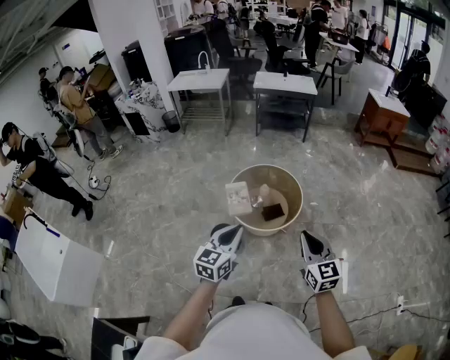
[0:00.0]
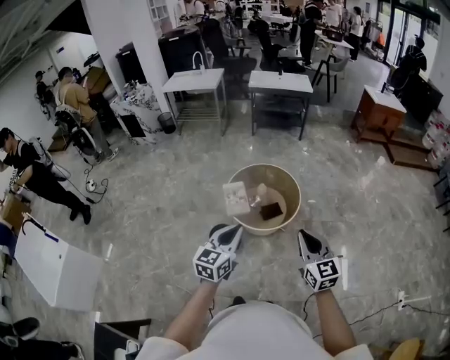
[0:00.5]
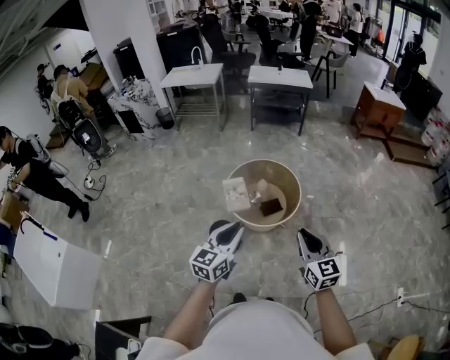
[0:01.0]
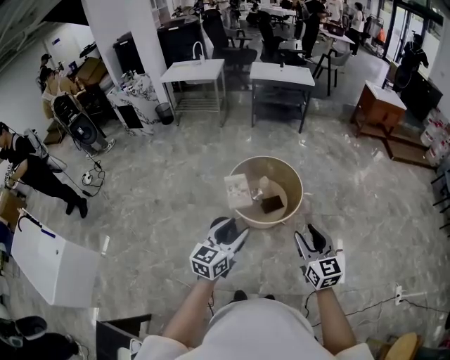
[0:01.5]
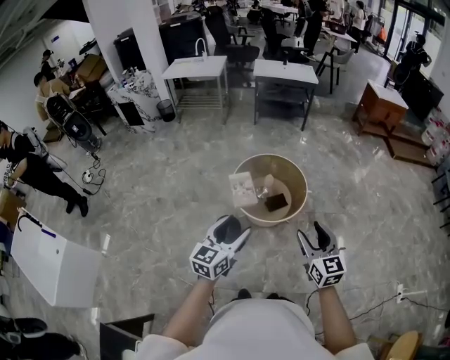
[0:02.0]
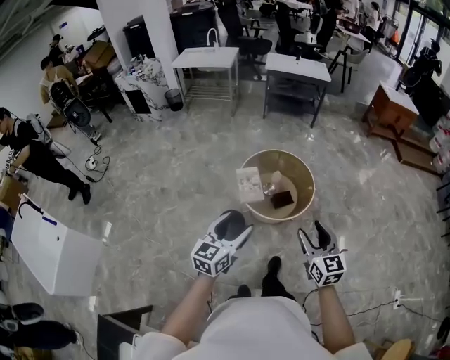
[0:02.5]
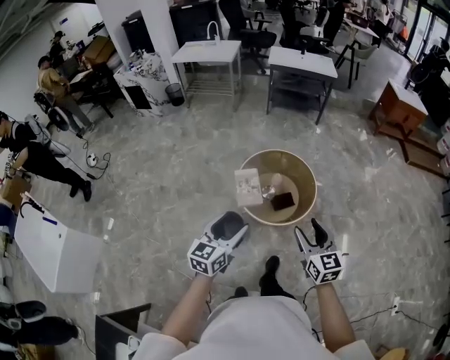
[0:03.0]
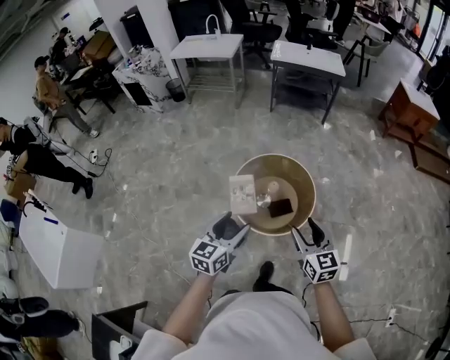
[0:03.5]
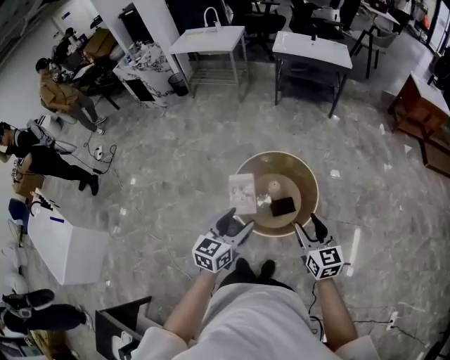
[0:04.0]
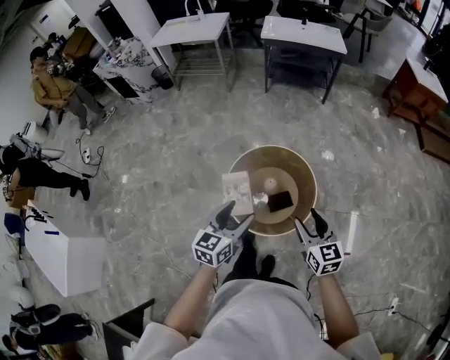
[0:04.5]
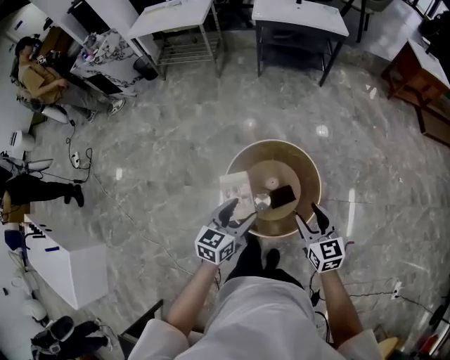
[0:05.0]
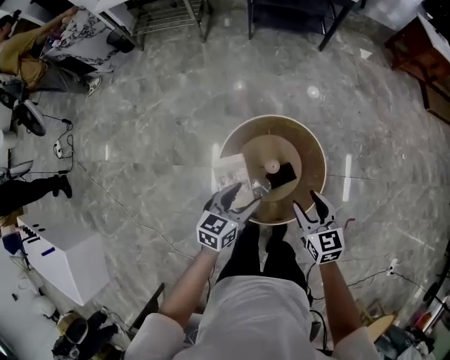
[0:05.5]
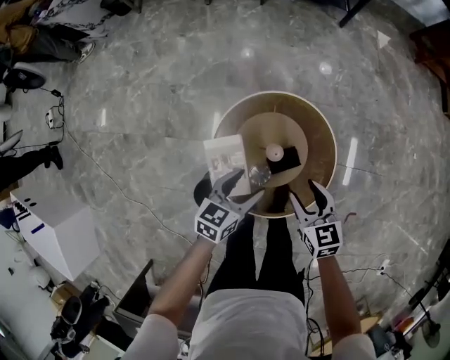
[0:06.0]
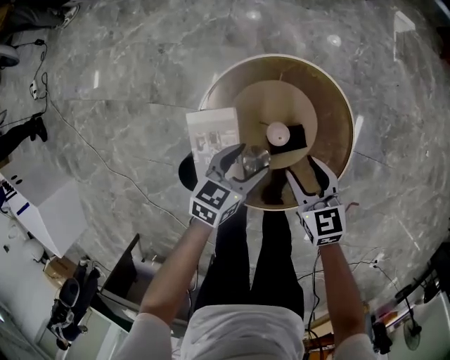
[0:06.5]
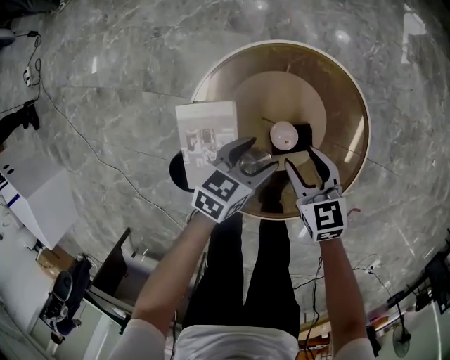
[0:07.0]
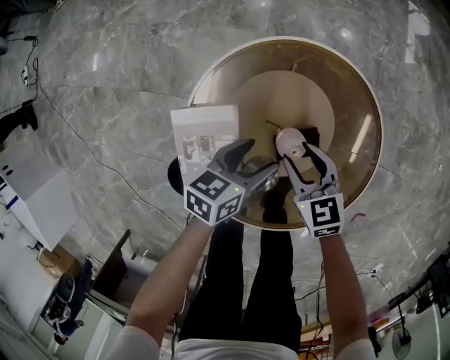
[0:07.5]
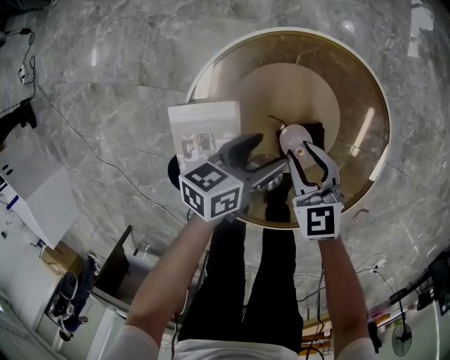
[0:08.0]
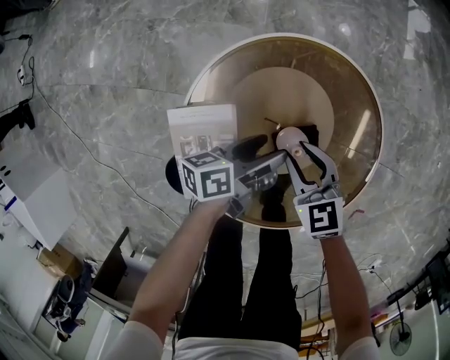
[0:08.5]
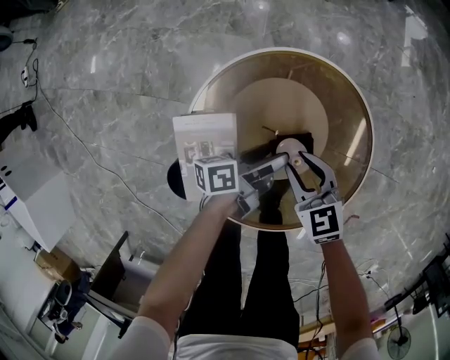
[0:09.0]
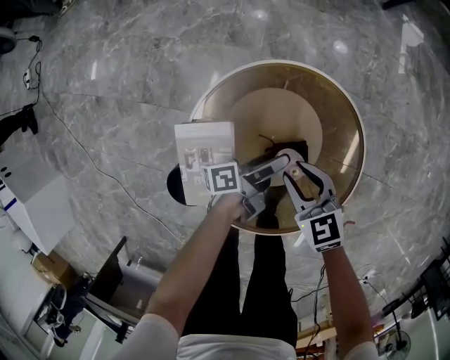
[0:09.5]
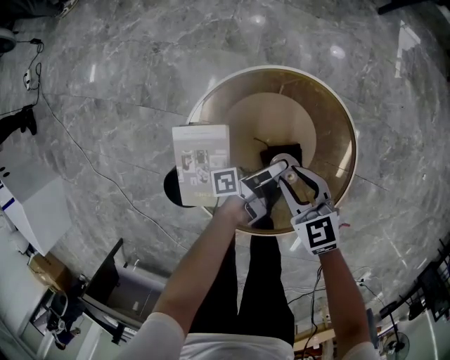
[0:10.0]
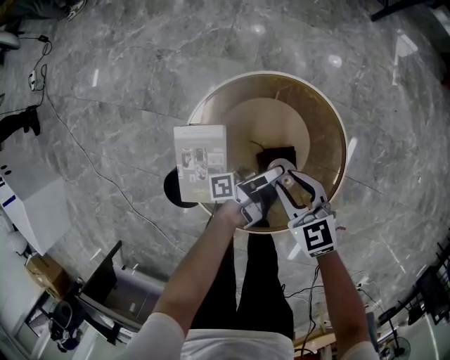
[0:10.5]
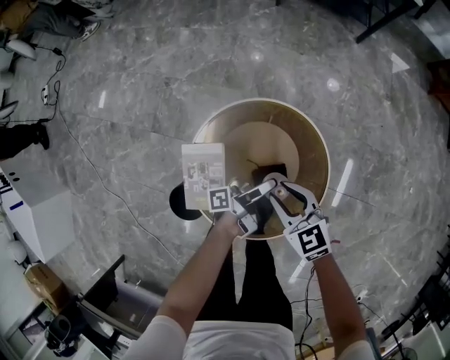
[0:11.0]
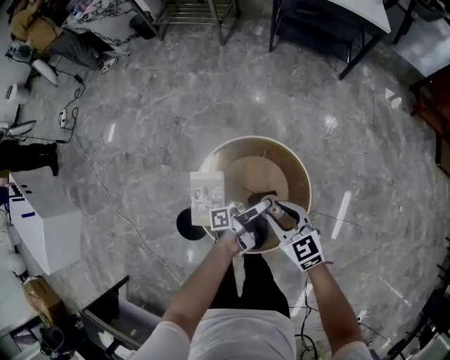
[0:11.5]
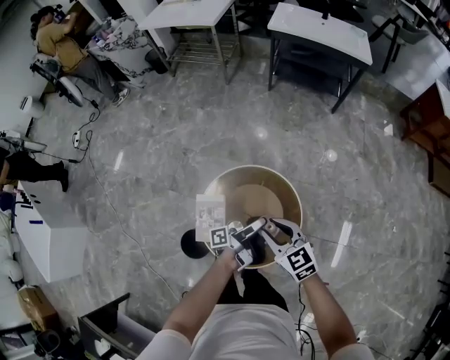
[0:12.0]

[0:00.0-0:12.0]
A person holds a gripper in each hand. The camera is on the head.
0:00.0 to 0:02.0: The right gripper shifts by roughly 10 cm, and opens up.
0:02.0 to 0:04.0: The right gripper shifts by about 35 cm.
0:04.0 to 0:06.0: The right gripper moves about 40 cm, and changes its angle by some 20 degrees.
0:06.0 to 0:08.0: The right gripper moves downward, roughly 30 cm, and closes its fingers.
0:08.0 to 0:10.0: The right gripper shifts approximately 10 cm upward.
0:10.0 to 0:12.0: The right gripper heads upward, covering some 40 cm.

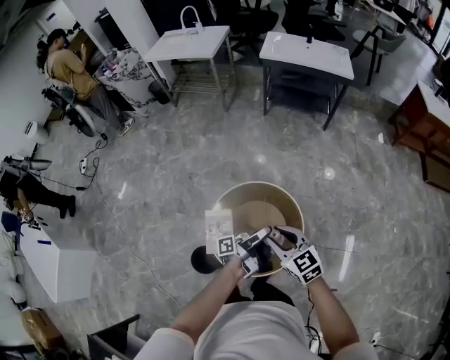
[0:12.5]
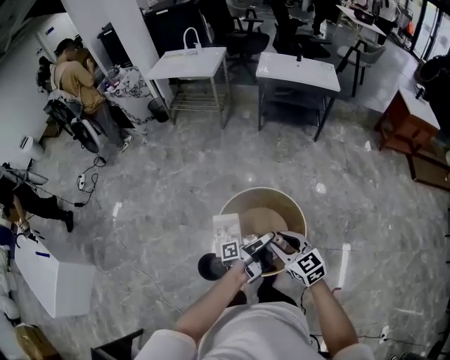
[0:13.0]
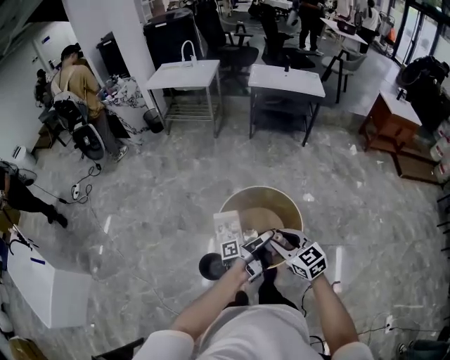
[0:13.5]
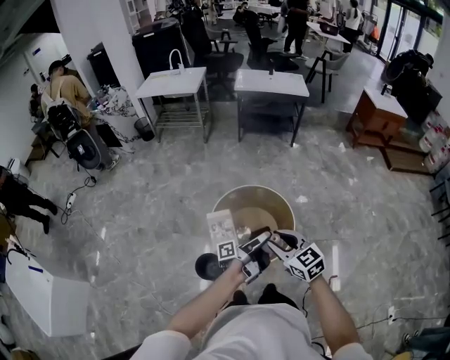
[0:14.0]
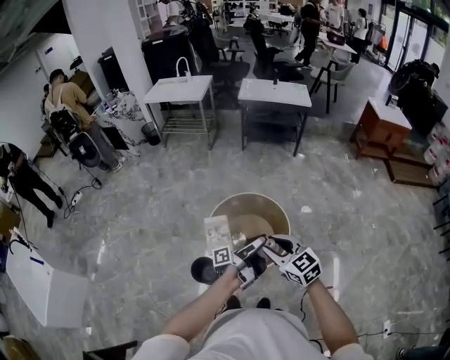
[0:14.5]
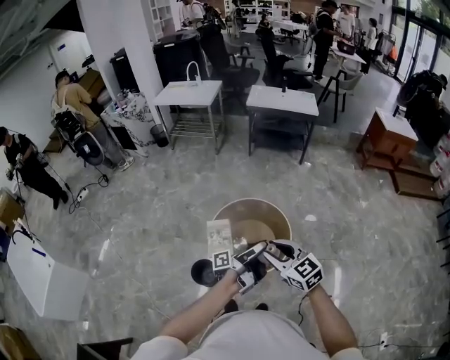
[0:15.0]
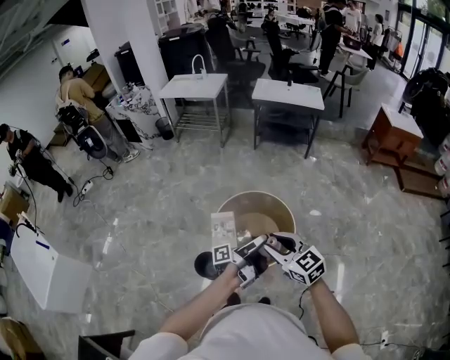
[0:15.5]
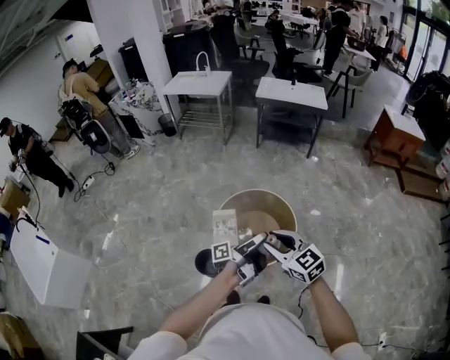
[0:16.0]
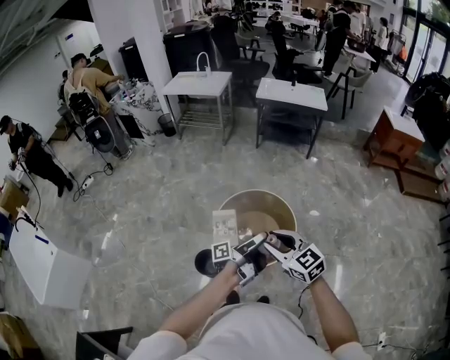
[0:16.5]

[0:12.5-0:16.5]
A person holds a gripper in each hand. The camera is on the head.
0:12.5 to 0:14.5: The right gripper ends up roughly 30 cm from where it was.

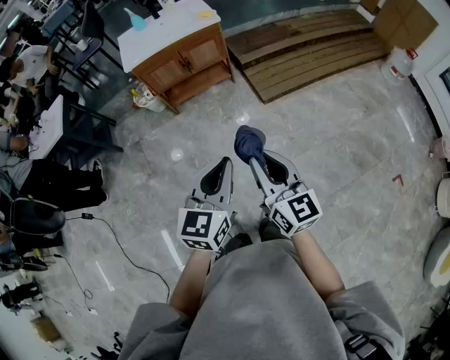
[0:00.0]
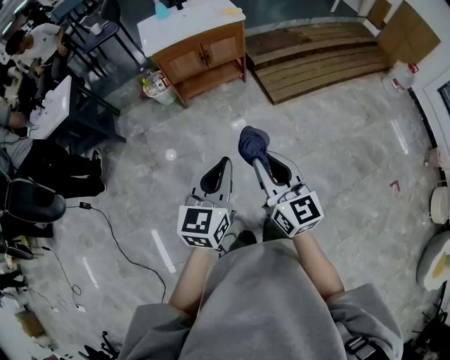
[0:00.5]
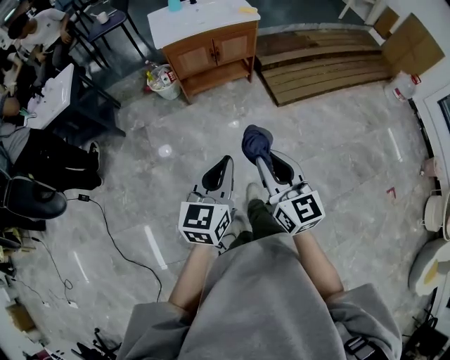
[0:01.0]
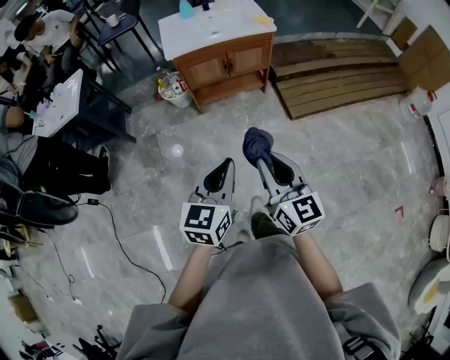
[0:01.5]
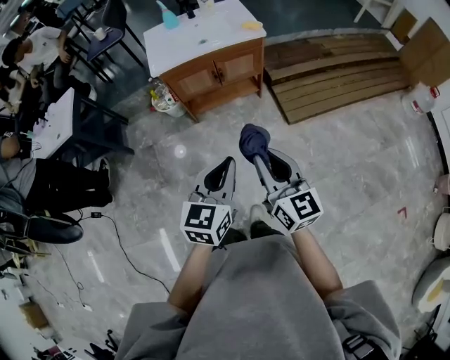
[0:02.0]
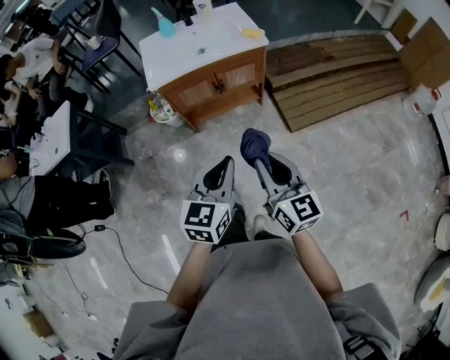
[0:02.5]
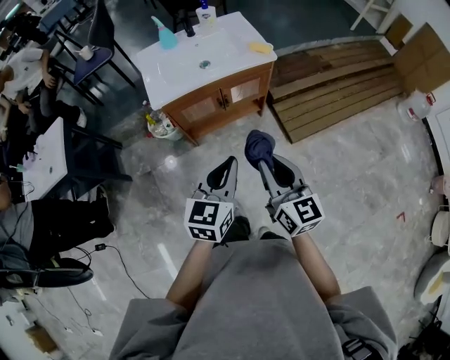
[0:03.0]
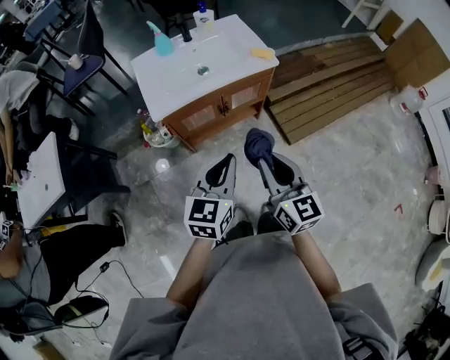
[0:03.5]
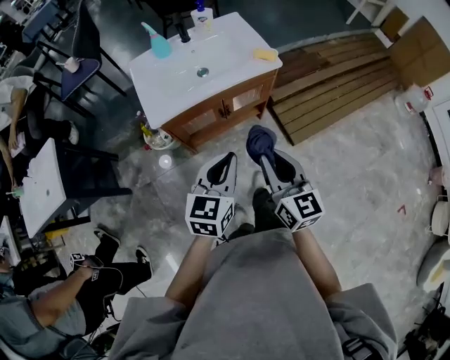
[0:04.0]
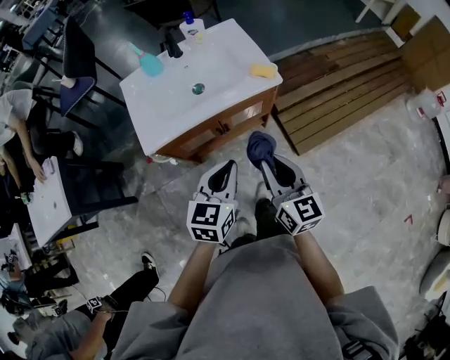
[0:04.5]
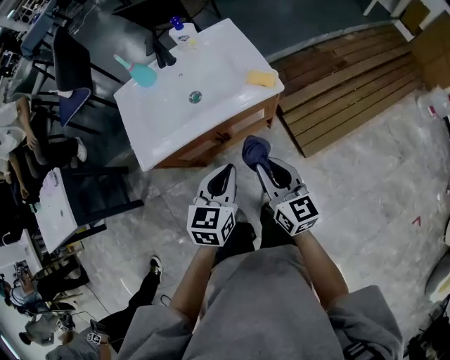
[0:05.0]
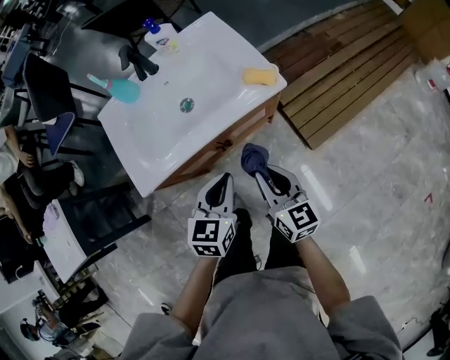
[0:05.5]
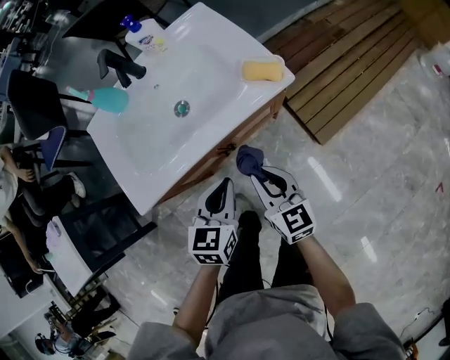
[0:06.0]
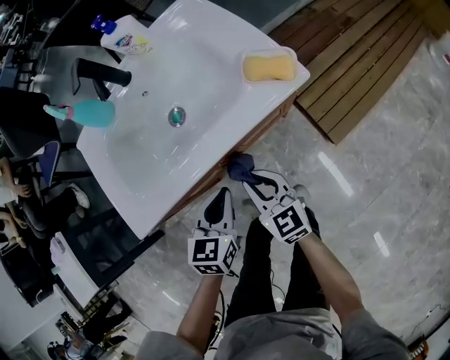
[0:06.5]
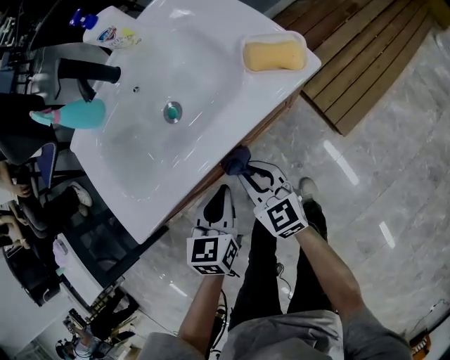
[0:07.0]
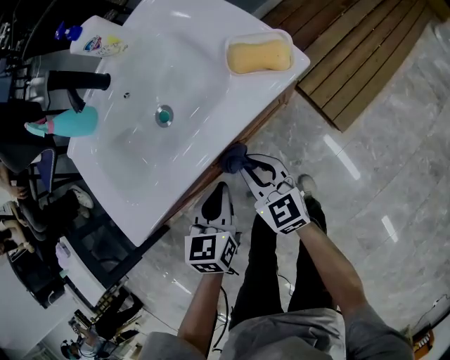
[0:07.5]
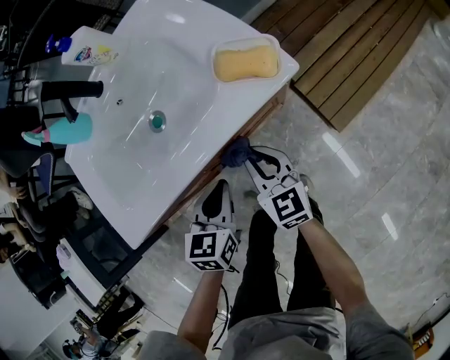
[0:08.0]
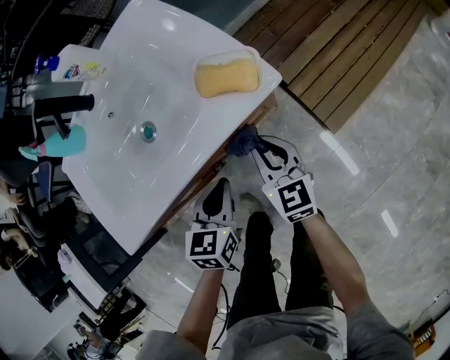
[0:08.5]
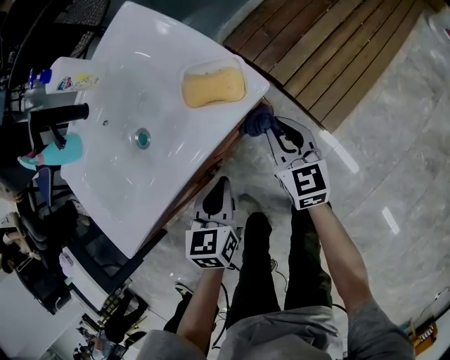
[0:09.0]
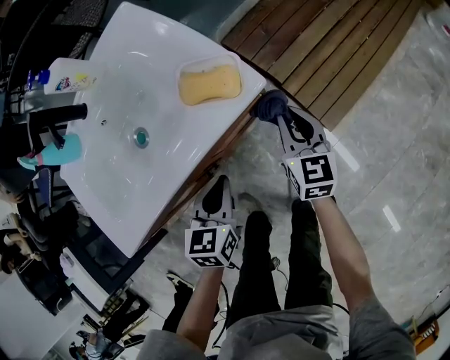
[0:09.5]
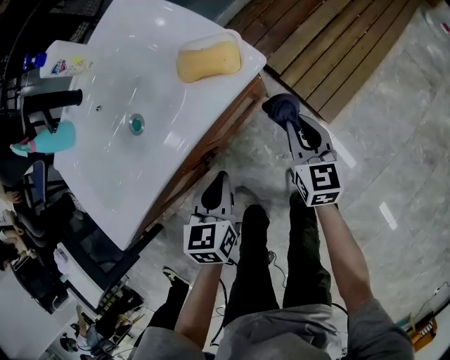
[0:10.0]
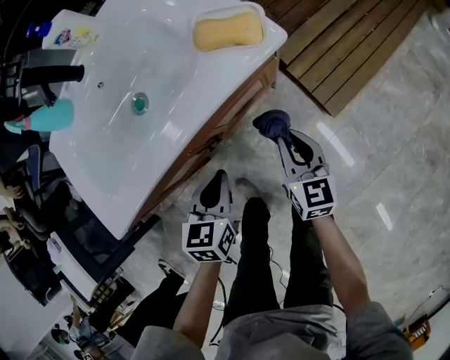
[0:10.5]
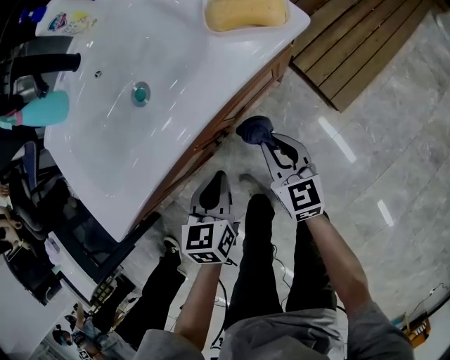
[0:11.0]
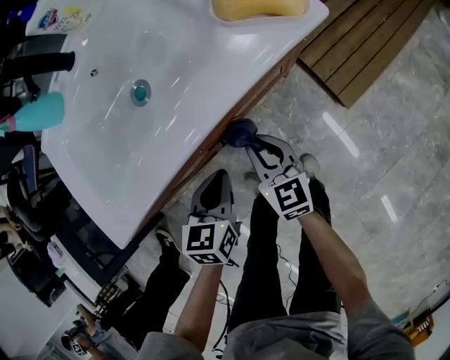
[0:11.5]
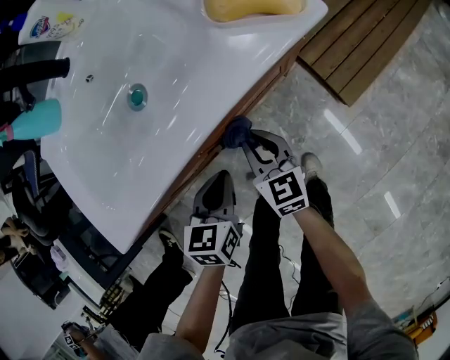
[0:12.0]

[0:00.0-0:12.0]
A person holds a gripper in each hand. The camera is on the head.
0:00.0 to 0:02.0: Both grippers travel together forward and to the left, approximately 20 cm.
0:02.0 to 0:04.0: The grippers both shift forward and to the left by approximately 30 cm.
0:04.0 to 0:06.0: Both grippers move forward and downward, some 30 cm.
0:06.0 to 0:08.0: The right gripper moves downward and forward, roughly 15 cm, while the left gripper goes roughly 10 cm downward.
0:08.0 to 0:10.0: The left gripper moves to the right, some 5 cm. The right gripper heads to the right, covering roughly 15 cm, and rotates roughly 20 degrees.
0:10.0 to 0:12.0: The left gripper heads to the left and downward, covering approximately 10 cm; the right gripper moves to the left, some 20 cm.
